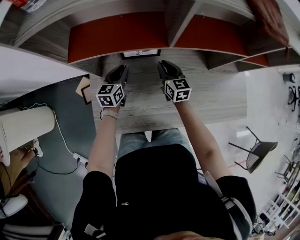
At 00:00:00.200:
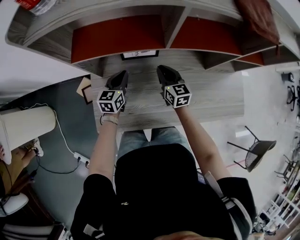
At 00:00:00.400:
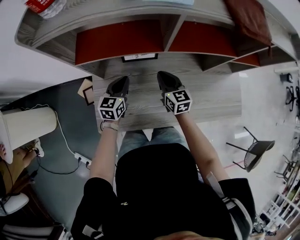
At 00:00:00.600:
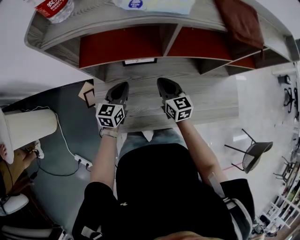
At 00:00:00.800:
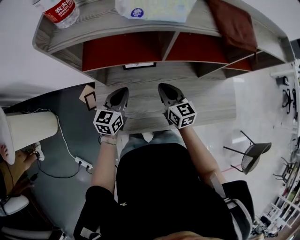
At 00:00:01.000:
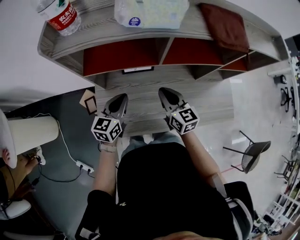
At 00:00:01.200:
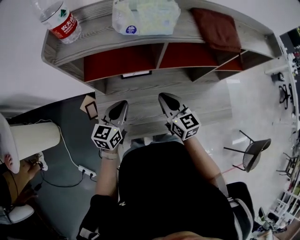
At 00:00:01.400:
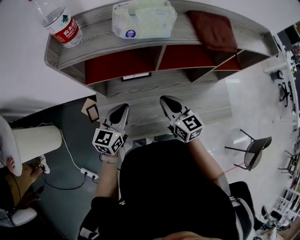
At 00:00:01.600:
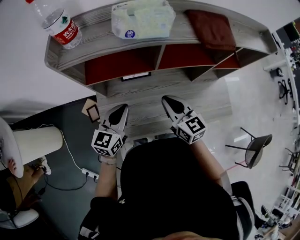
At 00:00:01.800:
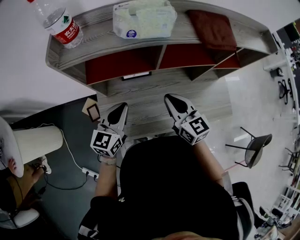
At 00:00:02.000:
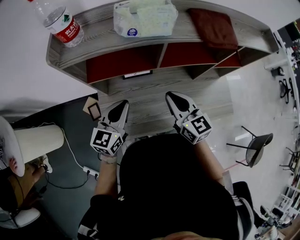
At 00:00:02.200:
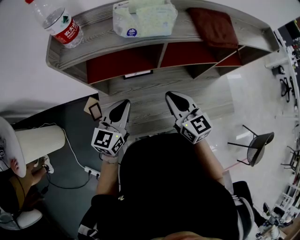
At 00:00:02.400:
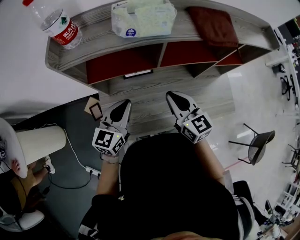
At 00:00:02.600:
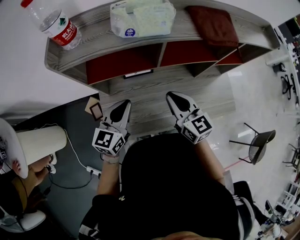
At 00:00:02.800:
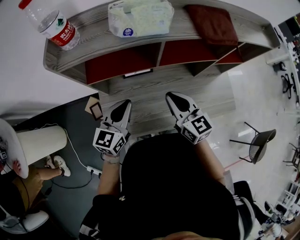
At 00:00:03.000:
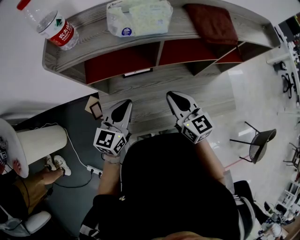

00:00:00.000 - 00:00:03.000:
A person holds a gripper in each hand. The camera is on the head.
00:00:00.000 - 00:00:01.600: Both grippers move upward and backward, approximately 30 cm.
00:00:01.600 - 00:00:03.000: There are only small adjustments of the grippers.

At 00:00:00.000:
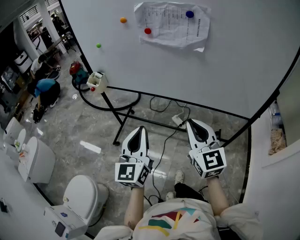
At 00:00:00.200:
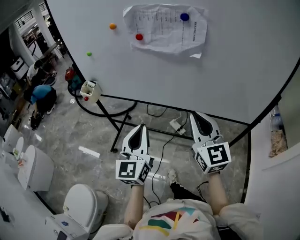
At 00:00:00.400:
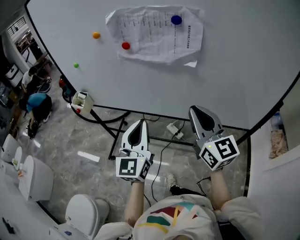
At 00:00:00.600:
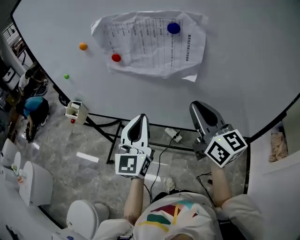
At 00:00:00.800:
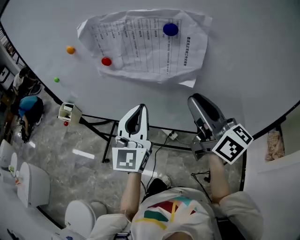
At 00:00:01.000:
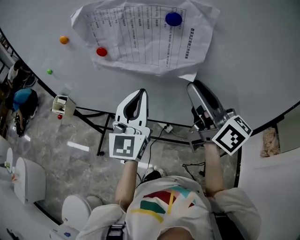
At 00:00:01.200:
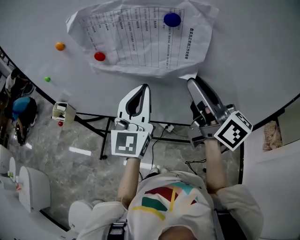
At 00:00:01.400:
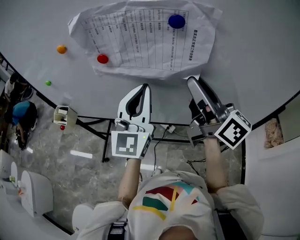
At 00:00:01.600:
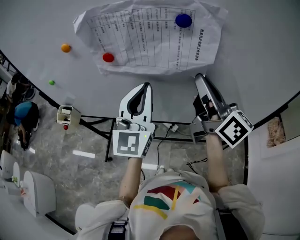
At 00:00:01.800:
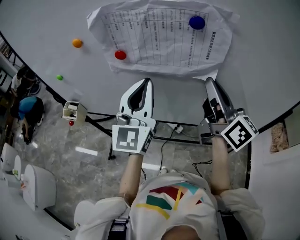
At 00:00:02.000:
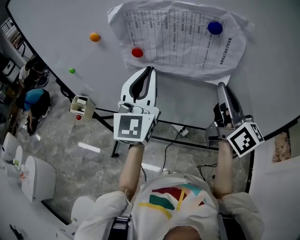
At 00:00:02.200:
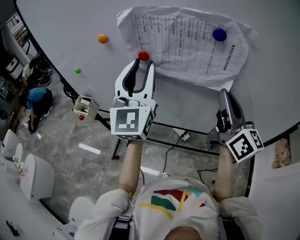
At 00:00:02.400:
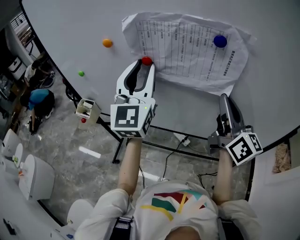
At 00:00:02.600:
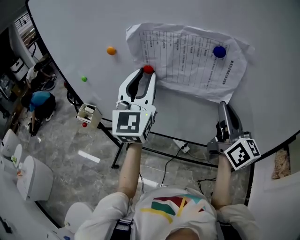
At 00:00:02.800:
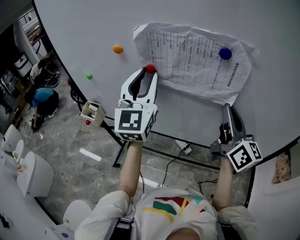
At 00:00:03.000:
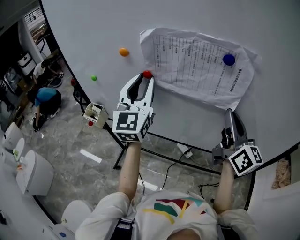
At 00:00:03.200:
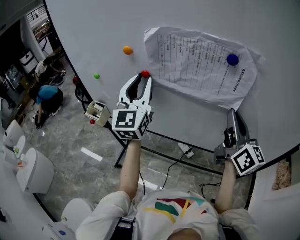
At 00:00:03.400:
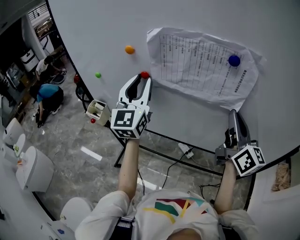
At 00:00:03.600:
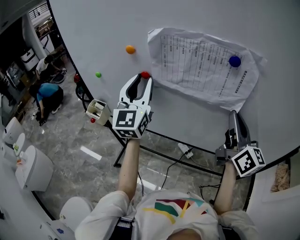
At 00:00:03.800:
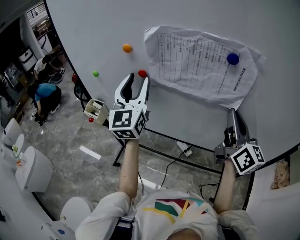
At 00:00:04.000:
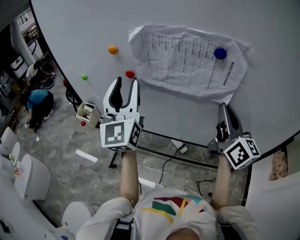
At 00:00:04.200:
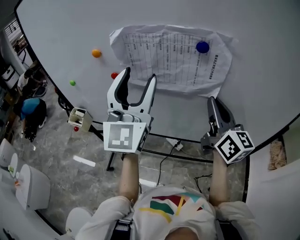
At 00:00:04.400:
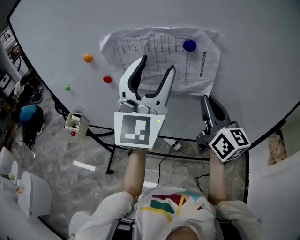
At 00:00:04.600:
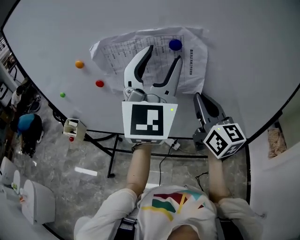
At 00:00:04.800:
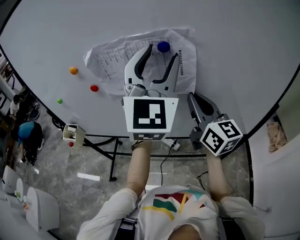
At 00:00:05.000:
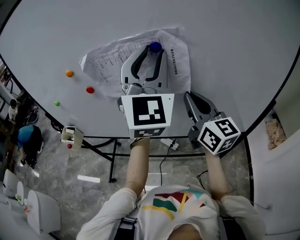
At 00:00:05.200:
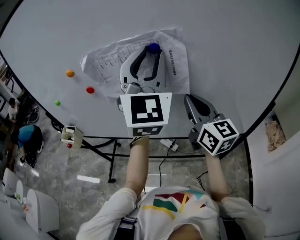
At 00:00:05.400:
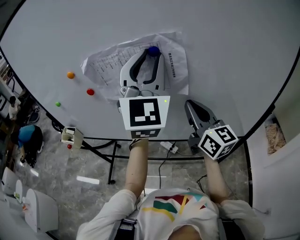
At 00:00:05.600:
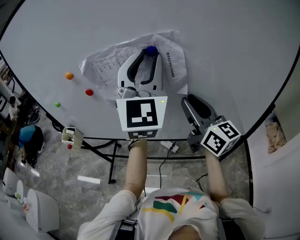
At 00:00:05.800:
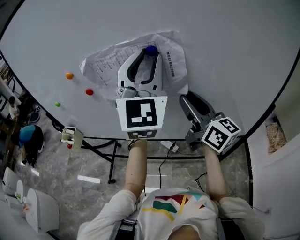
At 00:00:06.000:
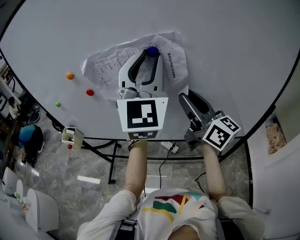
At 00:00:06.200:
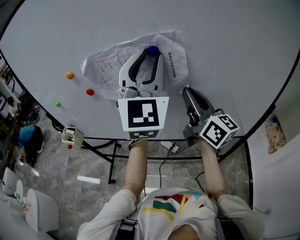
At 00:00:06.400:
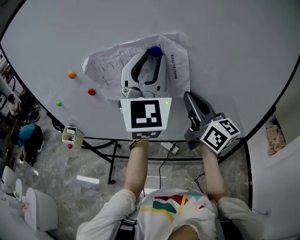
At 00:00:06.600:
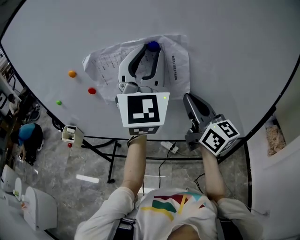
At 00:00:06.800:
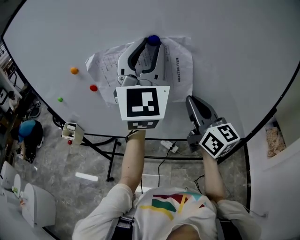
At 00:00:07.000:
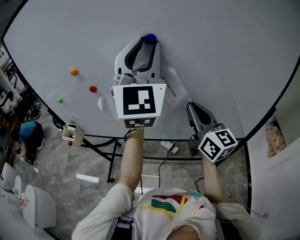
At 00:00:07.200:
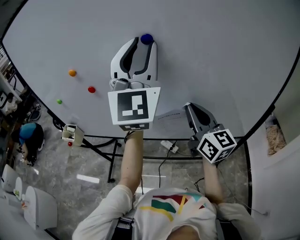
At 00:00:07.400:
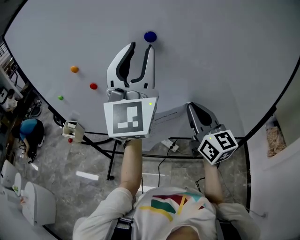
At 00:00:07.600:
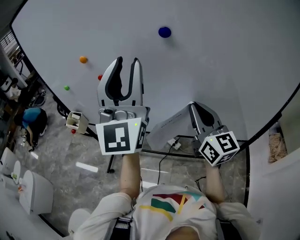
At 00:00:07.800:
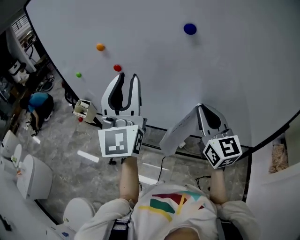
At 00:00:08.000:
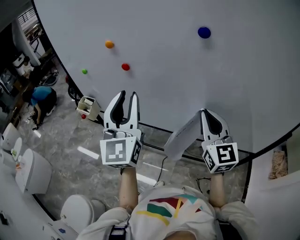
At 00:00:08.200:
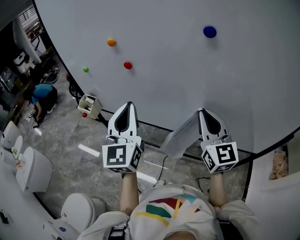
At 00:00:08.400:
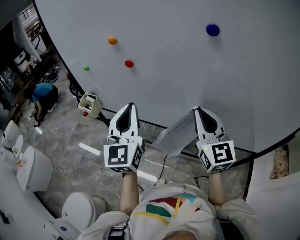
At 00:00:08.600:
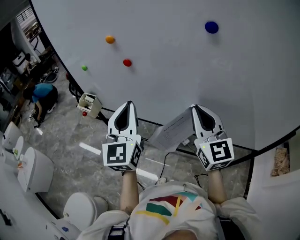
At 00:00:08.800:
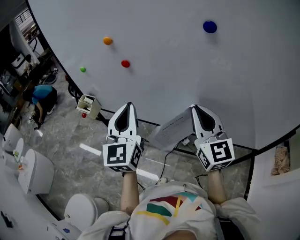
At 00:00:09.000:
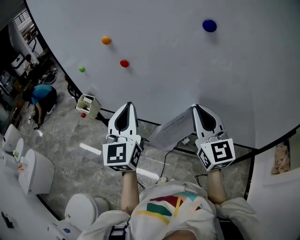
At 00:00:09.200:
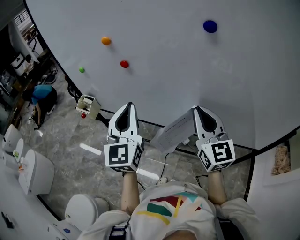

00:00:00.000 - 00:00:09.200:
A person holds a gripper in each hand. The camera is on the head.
00:00:00.000 - 00:00:01.600: The right gripper shifts roughly 30 cm forward and upward, rolls clockwise, seen from behind, by roughly 40 degrees, and opens, then closes once more. The left gripper shifts roughly 30 cm forward, and changes its angle by approximately 20 degrees.
00:00:01.600 - 00:00:03.000: The left gripper heads to the left, upward and forward, covering approximately 15 cm, and opens.
00:00:03.000 - 00:00:04.600: The left gripper shifts about 20 cm to the right and upward, swivels about 20 degrees, and opens its fingers.
00:00:04.600 - 00:00:06.200: The right gripper opens, then closes once more, while the left gripper closes.
00:00:06.200 - 00:00:07.600: The right gripper moves about 5 cm, and turns by about 20 degrees. The left gripper shifts some 10 cm to the left and backward.
00:00:07.600 - 00:00:09.200: The left gripper goes some 20 cm downward and to the left, rotates some 30 degrees, and closes its fingers. The right gripper shifts some 5 cm to the left.

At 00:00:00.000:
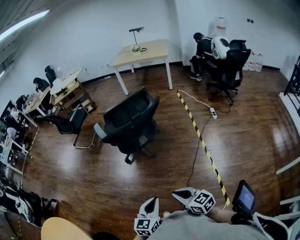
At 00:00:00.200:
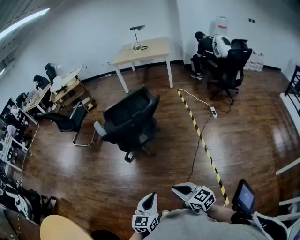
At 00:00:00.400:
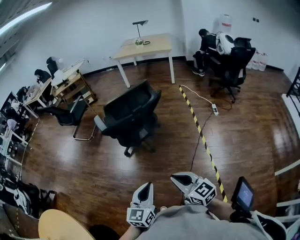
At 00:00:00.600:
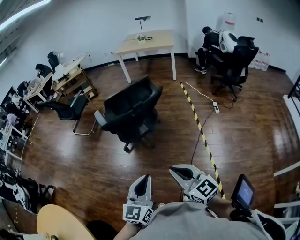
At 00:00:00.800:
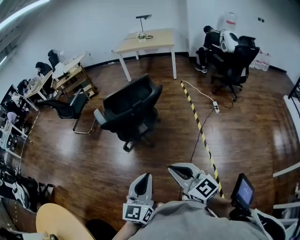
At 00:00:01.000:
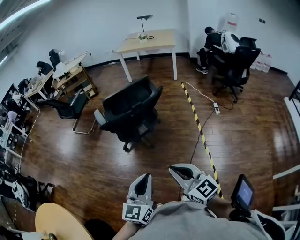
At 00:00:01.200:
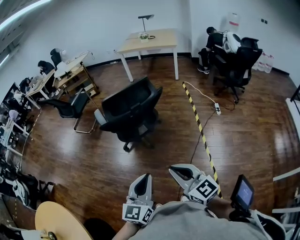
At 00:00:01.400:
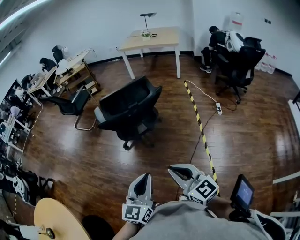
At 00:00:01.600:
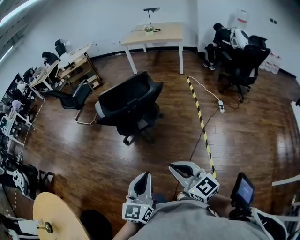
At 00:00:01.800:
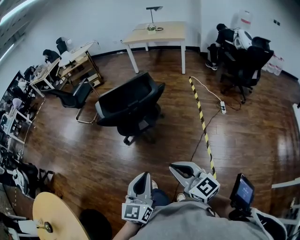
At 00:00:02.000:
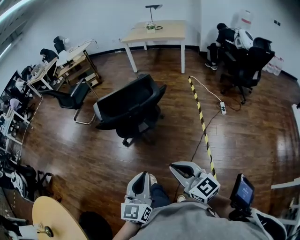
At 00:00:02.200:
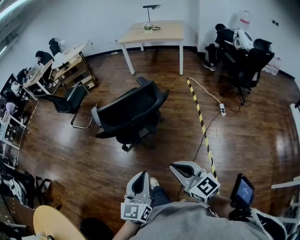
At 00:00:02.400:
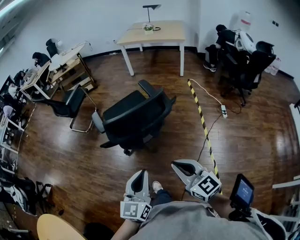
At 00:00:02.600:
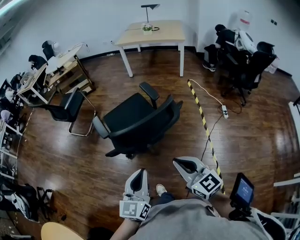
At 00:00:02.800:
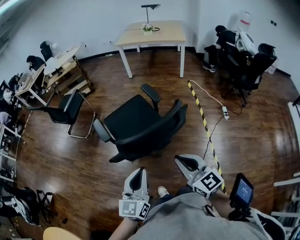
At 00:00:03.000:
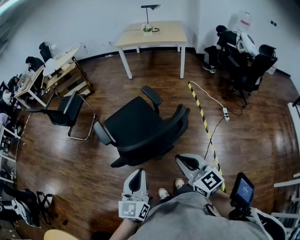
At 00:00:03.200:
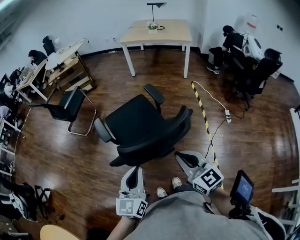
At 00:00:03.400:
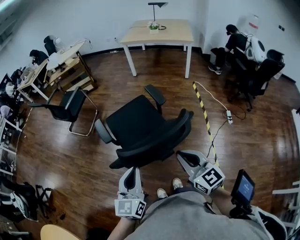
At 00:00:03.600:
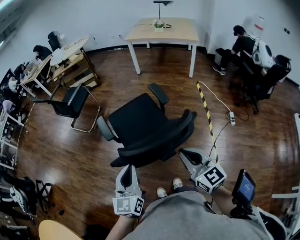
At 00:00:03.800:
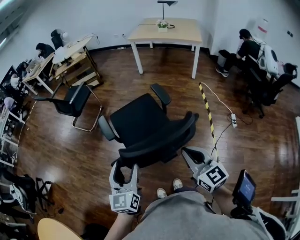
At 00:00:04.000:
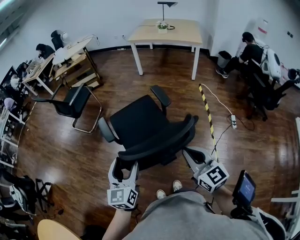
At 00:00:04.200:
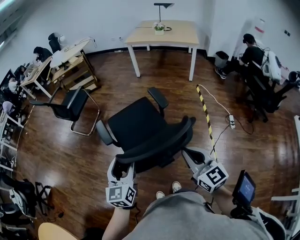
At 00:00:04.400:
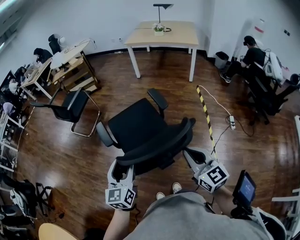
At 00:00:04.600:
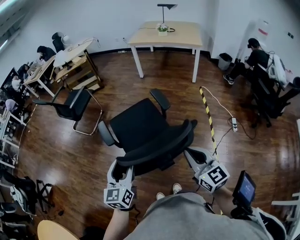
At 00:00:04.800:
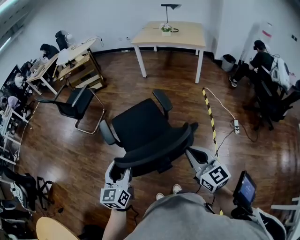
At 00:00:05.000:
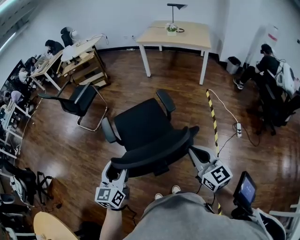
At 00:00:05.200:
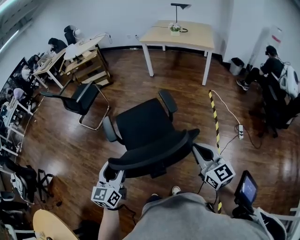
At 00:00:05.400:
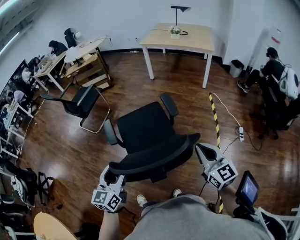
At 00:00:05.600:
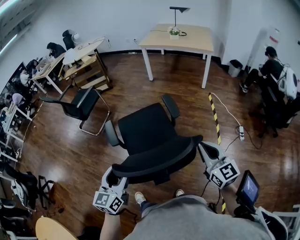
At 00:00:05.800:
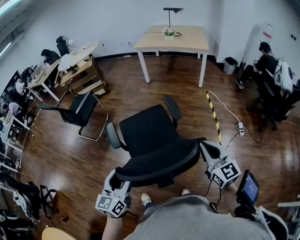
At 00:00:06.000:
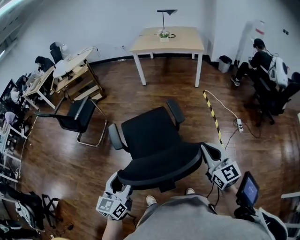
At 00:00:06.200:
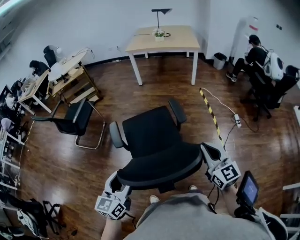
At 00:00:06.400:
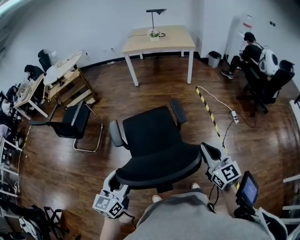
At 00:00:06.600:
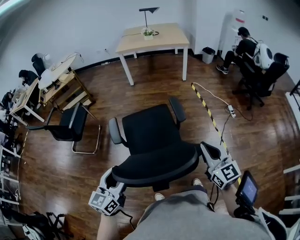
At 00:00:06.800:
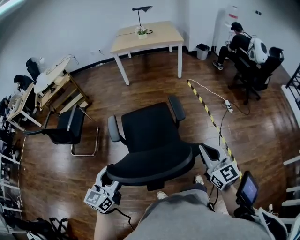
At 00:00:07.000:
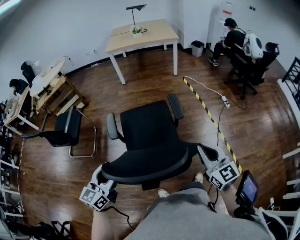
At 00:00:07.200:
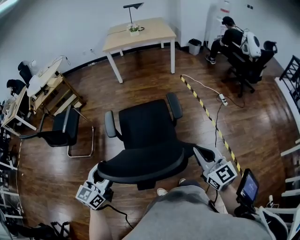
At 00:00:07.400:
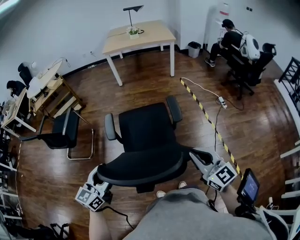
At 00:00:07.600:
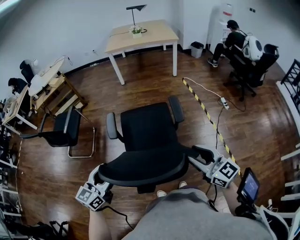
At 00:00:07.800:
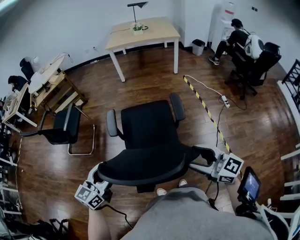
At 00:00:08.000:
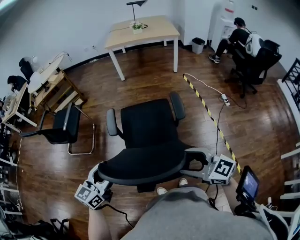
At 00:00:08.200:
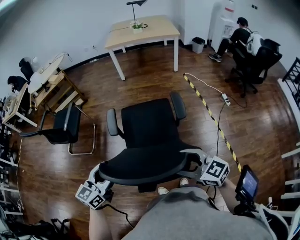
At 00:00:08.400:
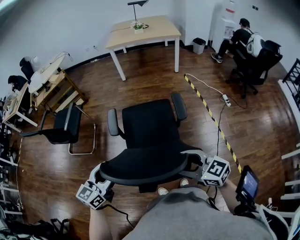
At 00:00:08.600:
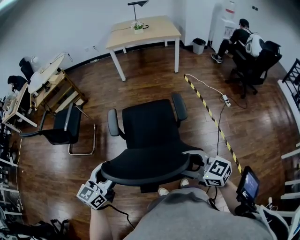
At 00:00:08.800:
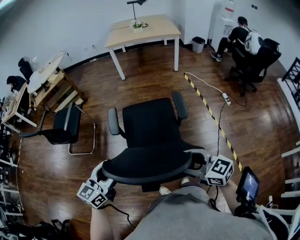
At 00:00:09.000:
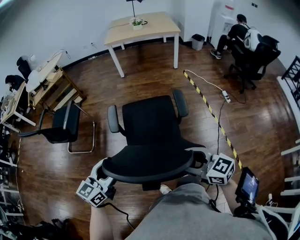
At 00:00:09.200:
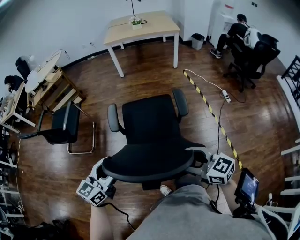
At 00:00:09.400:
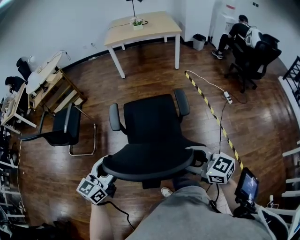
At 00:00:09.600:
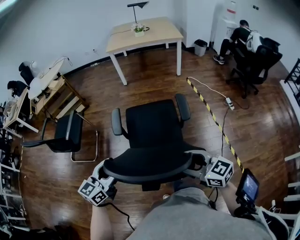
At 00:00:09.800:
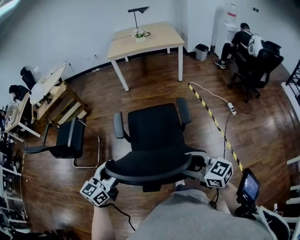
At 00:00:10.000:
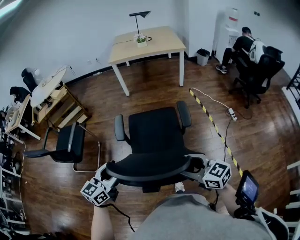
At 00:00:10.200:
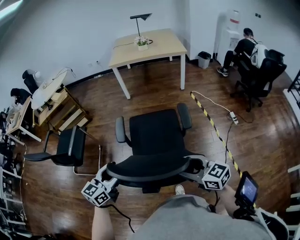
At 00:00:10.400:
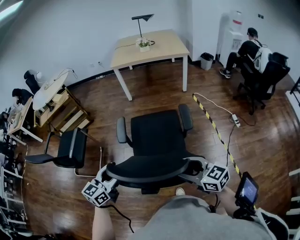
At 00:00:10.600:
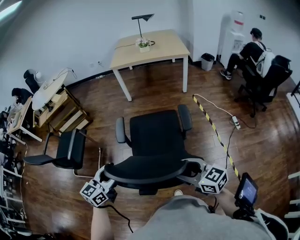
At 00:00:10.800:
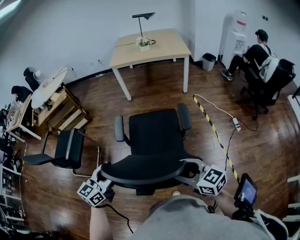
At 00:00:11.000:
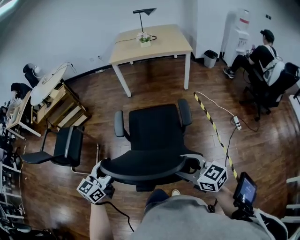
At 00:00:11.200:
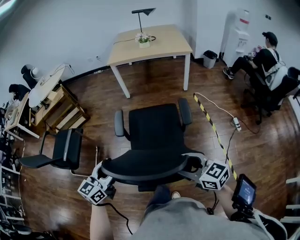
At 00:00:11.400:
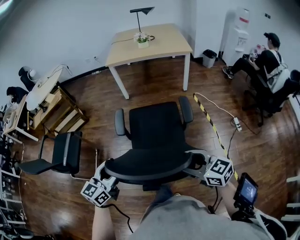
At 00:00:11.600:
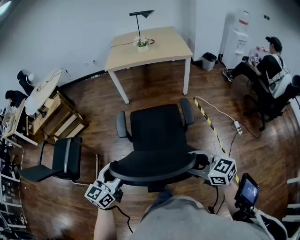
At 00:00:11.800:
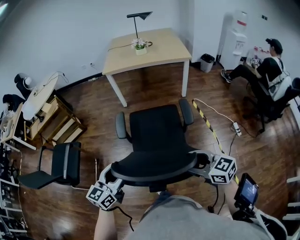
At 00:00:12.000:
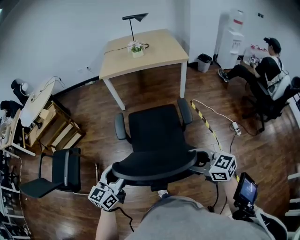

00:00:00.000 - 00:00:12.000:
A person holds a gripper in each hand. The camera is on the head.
00:00:00.000 - 00:00:01.600: Both grippers move upward, to the right and forward, approximately 15 cm. The right gripper rotates approximately 20 degrees.
00:00:01.600 - 00:00:03.000: The grippers both shift forward by about 30 cm.
00:00:03.000 - 00:00:04.400: The right gripper heads forward and to the right, covering roughly 10 cm, while the left gripper heads forward, covering approximately 10 cm, and opens its fingers.
00:00:04.400 - 00:00:06.000: The left gripper goes roughly 10 cm to the left. The right gripper is displaced forward by roughly 5 cm.
00:00:06.000 - 00:00:07.600: The left gripper is displaced to the left by some 15 cm, and changes its angle by about 20 degrees. Meanwhile the right gripper heads to the left and backward, covering approximately 15 cm, and opens up.
00:00:07.600 - 00:00:09.000: The right gripper heads to the left, covering roughly 5 cm.
00:00:09.000 - 00:00:10.400: The two grippers go approximately 20 cm forward.
00:00:10.400 - 00:00:12.000: Both grippers move forward, approximately 25 cm.
